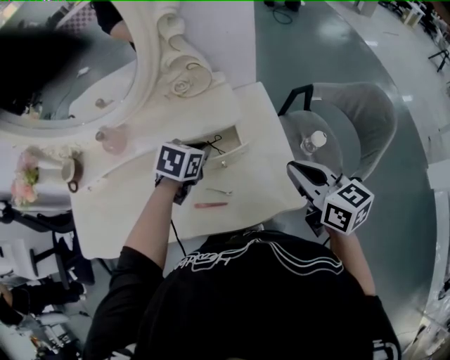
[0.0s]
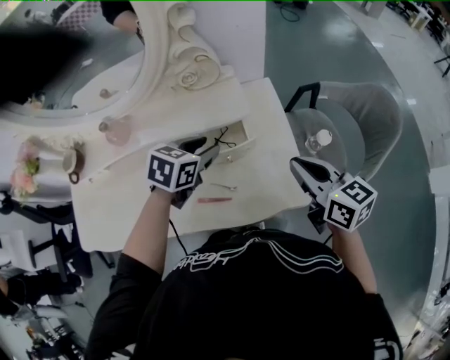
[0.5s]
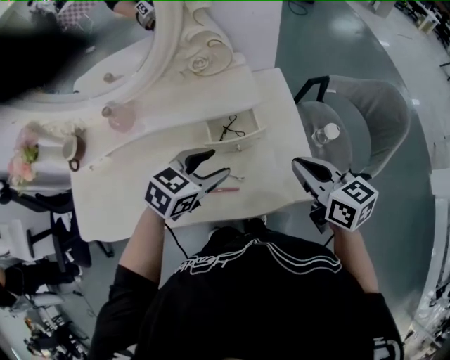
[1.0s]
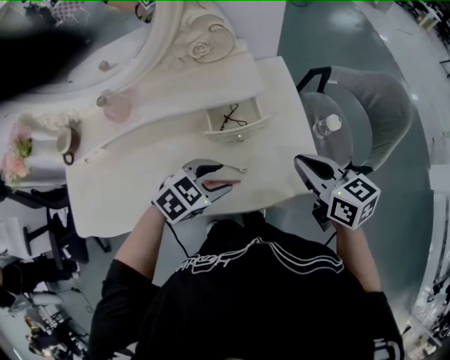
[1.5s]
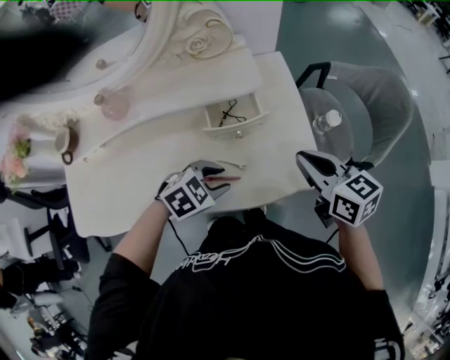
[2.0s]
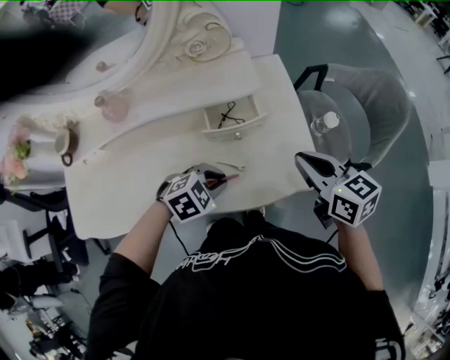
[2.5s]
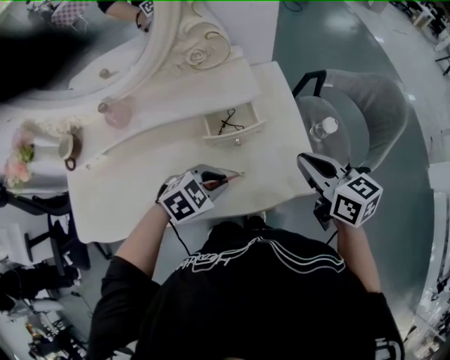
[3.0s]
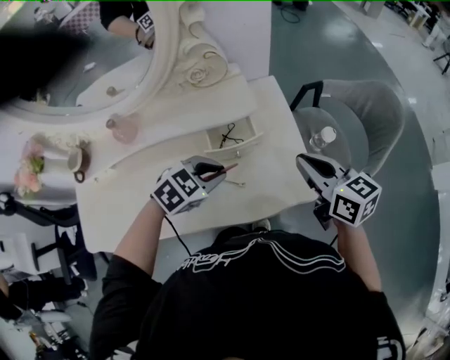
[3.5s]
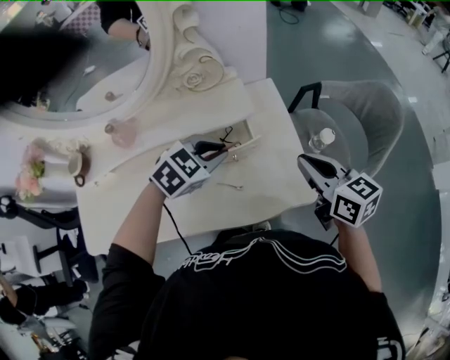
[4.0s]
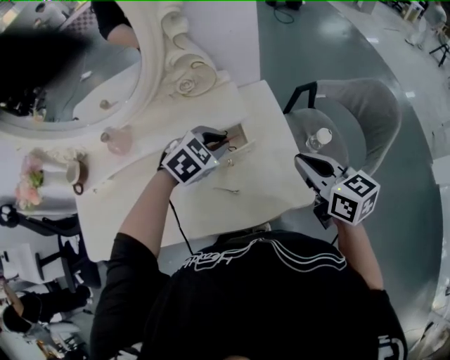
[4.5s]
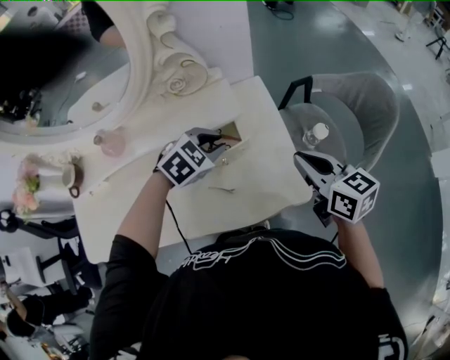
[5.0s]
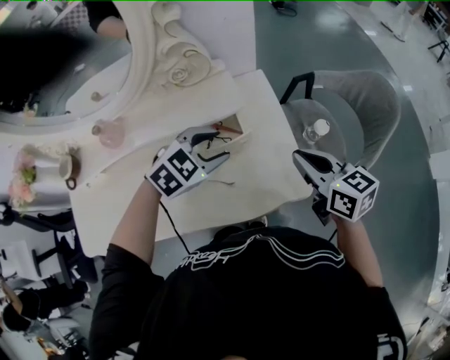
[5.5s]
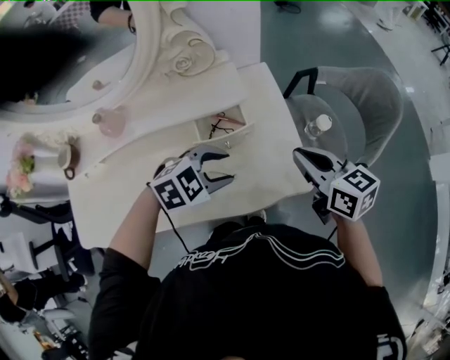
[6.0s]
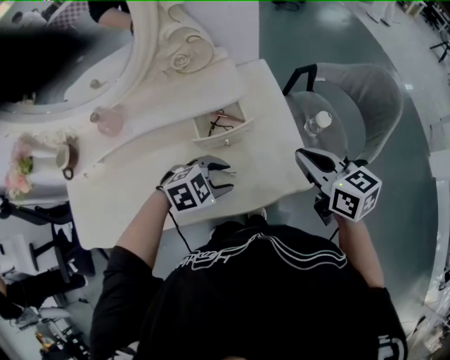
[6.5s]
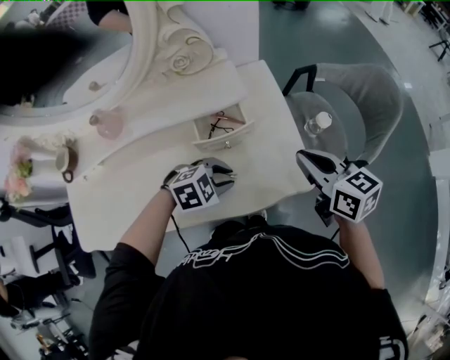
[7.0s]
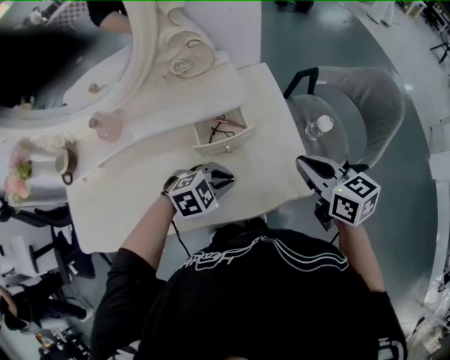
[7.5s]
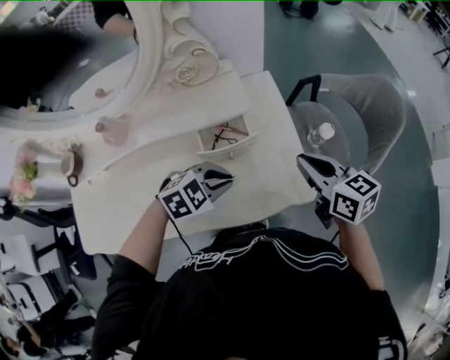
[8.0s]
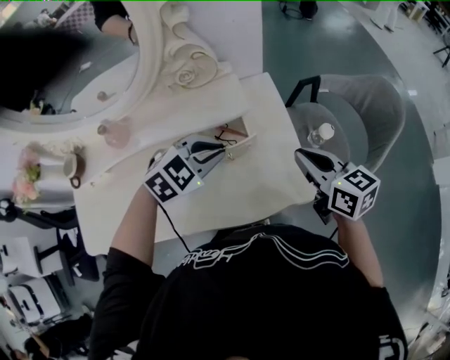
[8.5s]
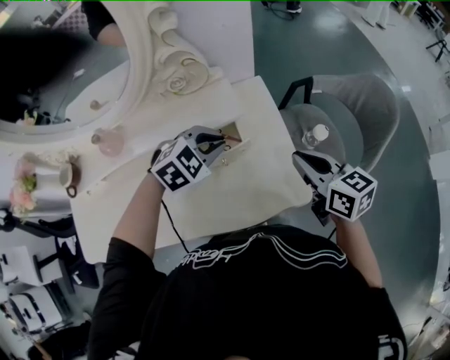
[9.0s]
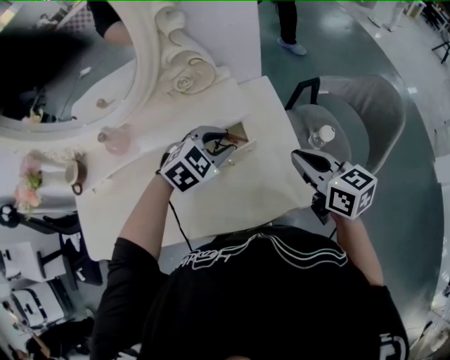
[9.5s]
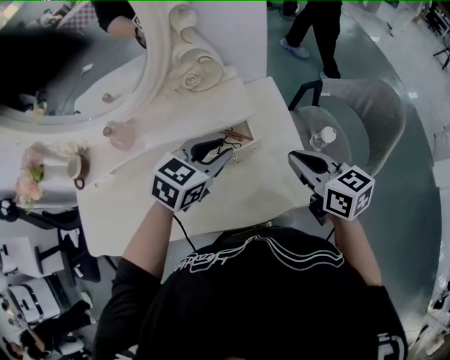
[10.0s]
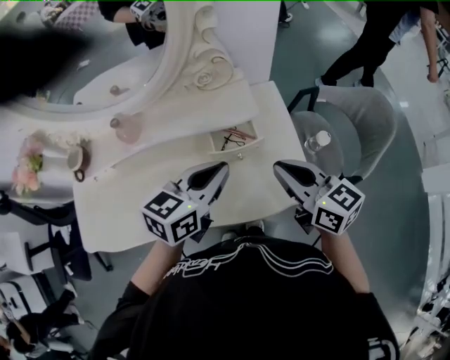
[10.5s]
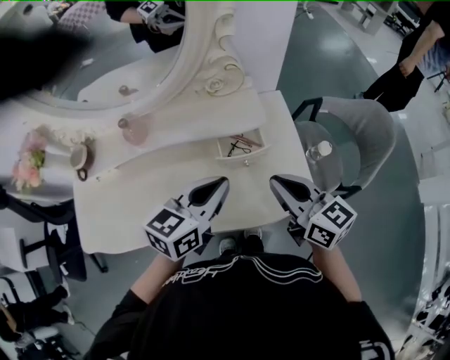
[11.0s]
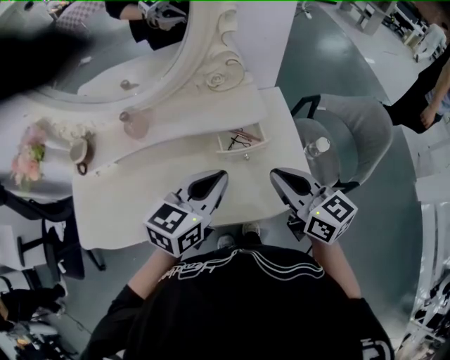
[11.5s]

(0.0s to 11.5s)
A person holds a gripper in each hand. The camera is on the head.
0.0s - 2.0s: The left gripper travels backward by roughly 15 cm, changes its angle by roughly 40 degrees, and opens. The right gripper ends up approximately 5 cm from where it was.
2.0s - 4.0s: The left gripper shifts some 15 cm forward and upward, and closes. Meanwhile the right gripper ends up some 5 cm from where it was.
4.0s - 6.0s: The left gripper travels backward by roughly 5 cm, and opens up.
6.0s - 7.5s: The left gripper heads downward, covering some 10 cm, and closes.
7.5s - 9.5s: The left gripper is displaced forward and upward by roughly 15 cm.
9.5s - 11.5s: The left gripper moves upward, backward and to the left, some 20 cm, and swivels some 50 degrees. Meanwhile the right gripper heads to the left, upward and backward, covering some 15 cm.

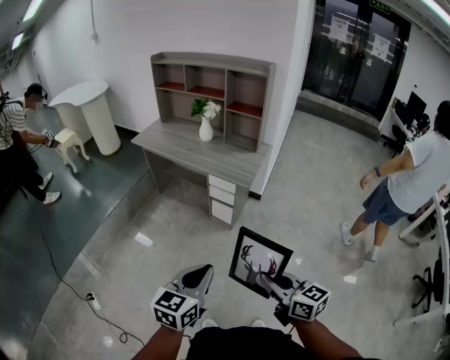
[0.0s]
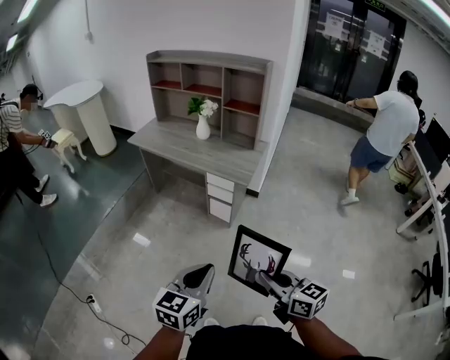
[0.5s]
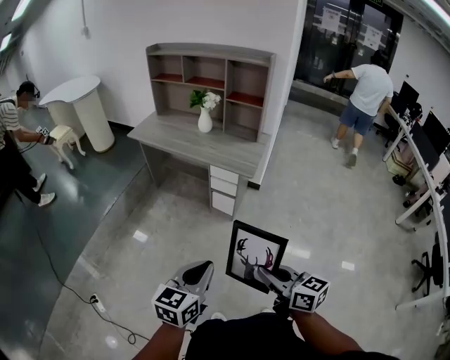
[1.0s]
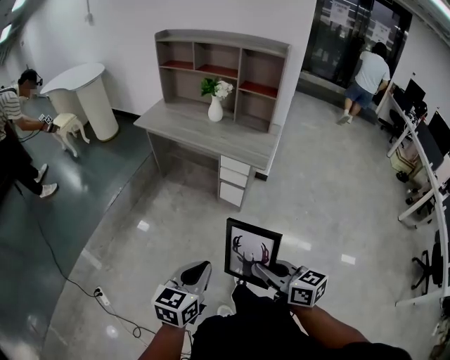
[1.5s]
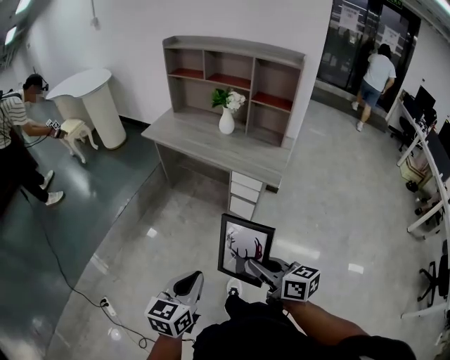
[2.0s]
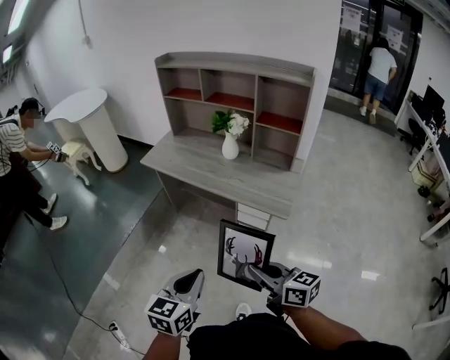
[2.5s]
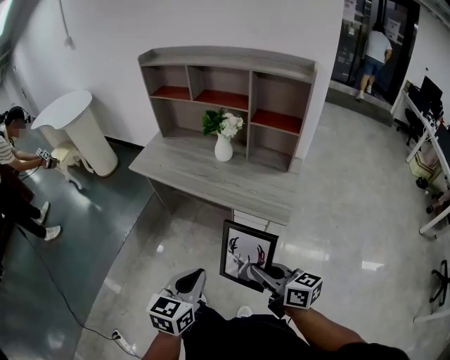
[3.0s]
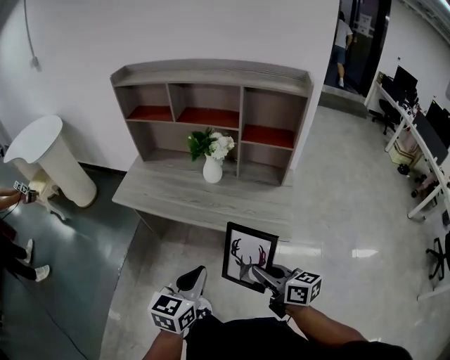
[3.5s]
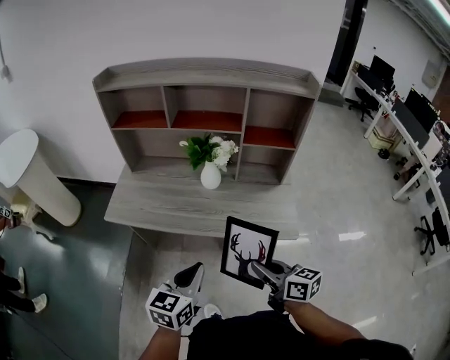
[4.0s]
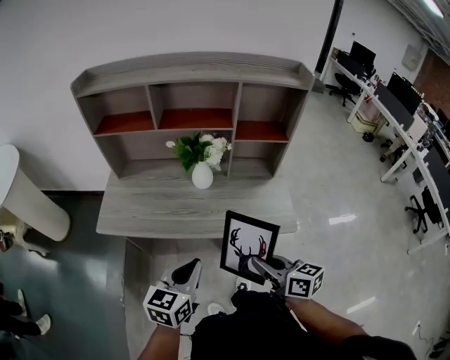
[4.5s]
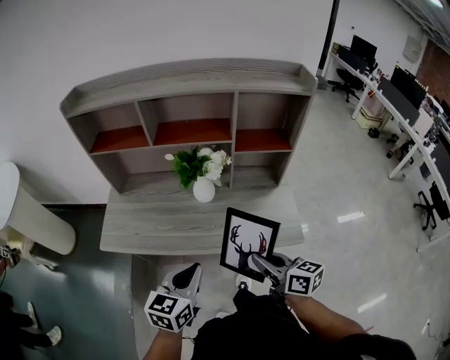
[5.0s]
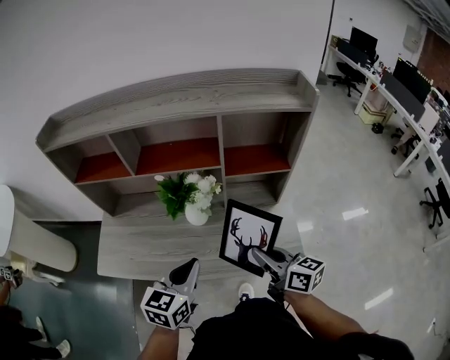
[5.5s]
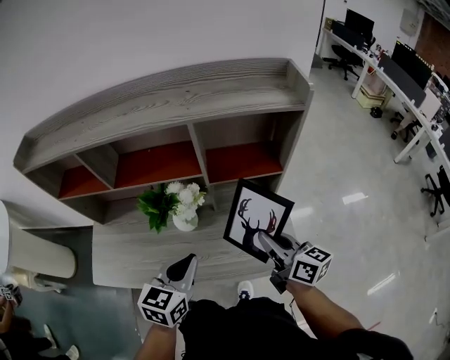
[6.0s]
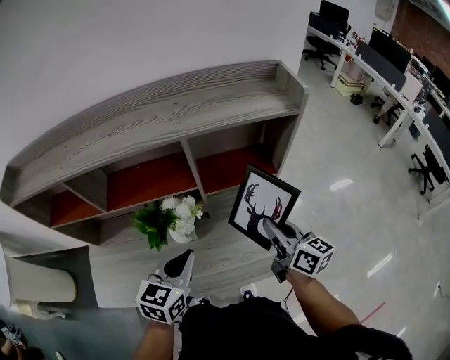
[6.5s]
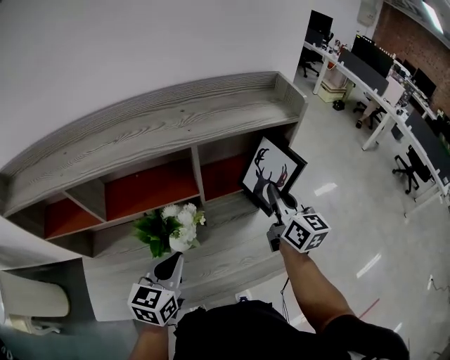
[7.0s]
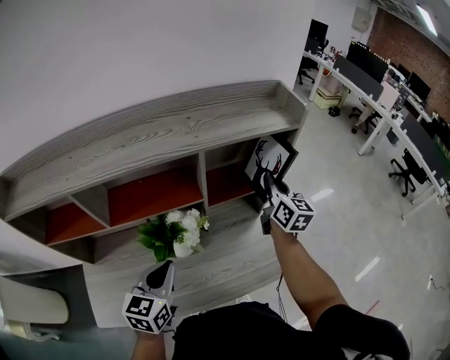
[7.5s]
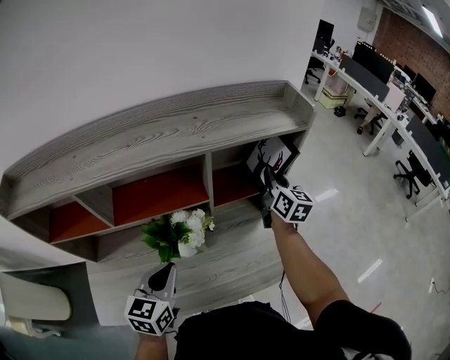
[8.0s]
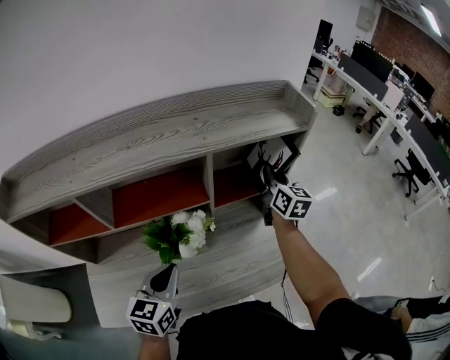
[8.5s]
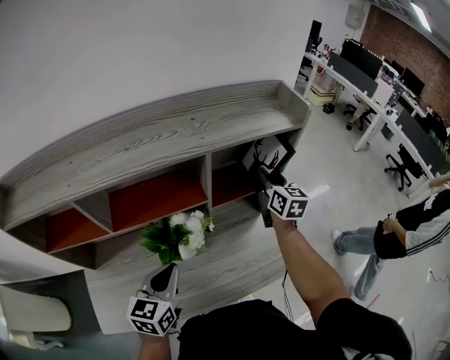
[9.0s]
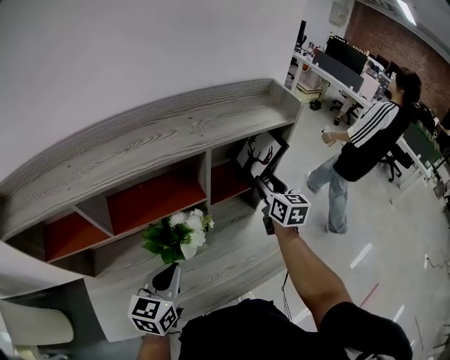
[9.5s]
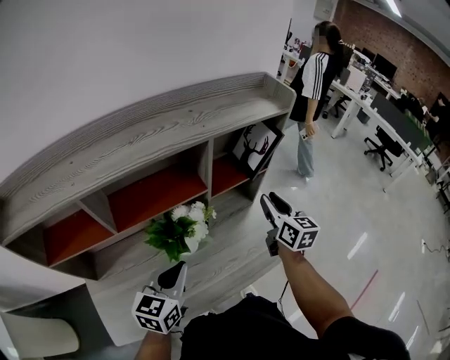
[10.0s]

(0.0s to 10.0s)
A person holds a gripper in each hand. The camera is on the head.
0.0s - 2.0s: Both grippers move to the left and forward, about 20 cm.
2.0s - 4.0s: The pair of grippers is taken forward, approximately 50 cm. The left gripper turns by some 20 degrees. Meanwhile the right gripper rotates approximately 20 degrees.
4.0s - 6.0s: The left gripper goes approximately 30 cm forward; the right gripper goes approximately 30 cm forward and to the right, and changes its angle by about 20 degrees.
6.0s - 8.0s: The right gripper travels forward by about 25 cm, and rotates roughly 40 degrees. Meanwhile the left gripper is displaced to the left by approximately 10 cm.
8.0s - 10.0s: The right gripper heads backward, covering some 15 cm, and opens.

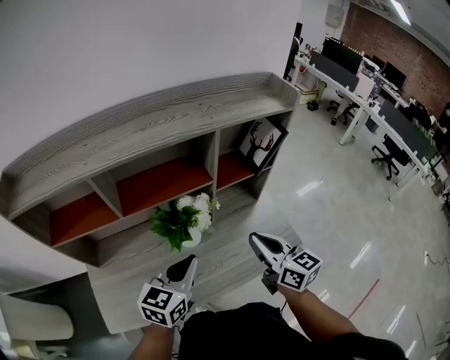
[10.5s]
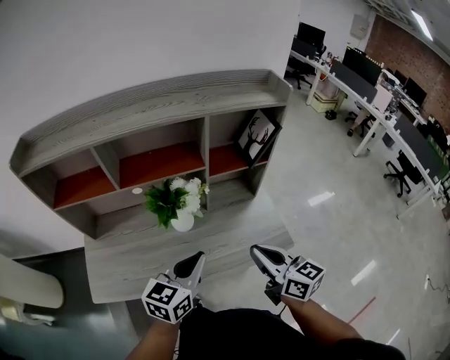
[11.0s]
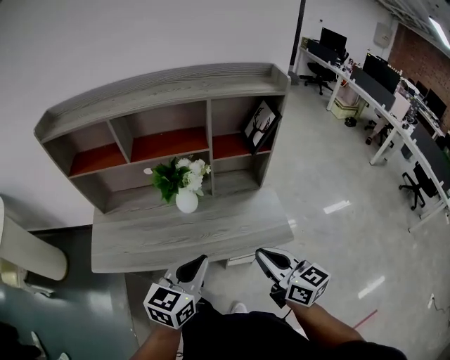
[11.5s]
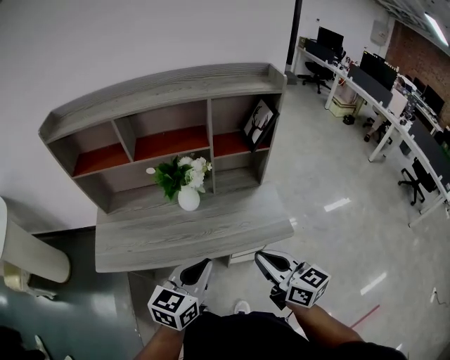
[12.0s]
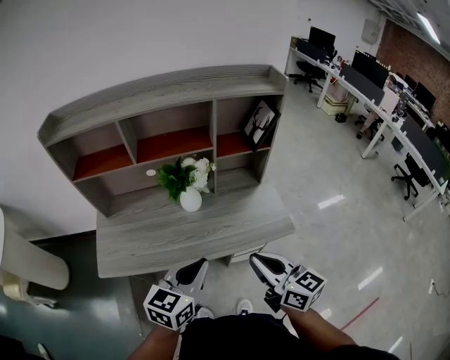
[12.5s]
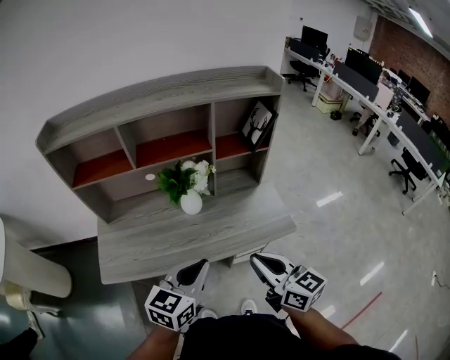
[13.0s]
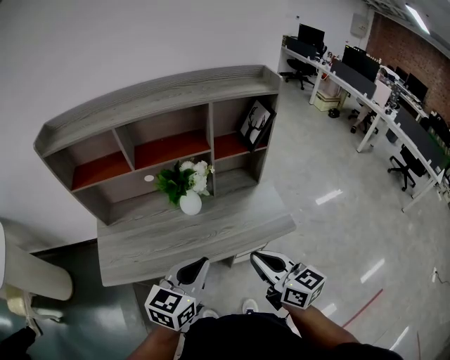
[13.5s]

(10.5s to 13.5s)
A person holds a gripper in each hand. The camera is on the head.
10.5s - 12.0s: The left gripper is displaced backward and to the right by about 20 cm; the right gripper is displaced backward by some 20 cm.
12.0s - 13.5s: Both grippers move to the left, roughly 5 cm.

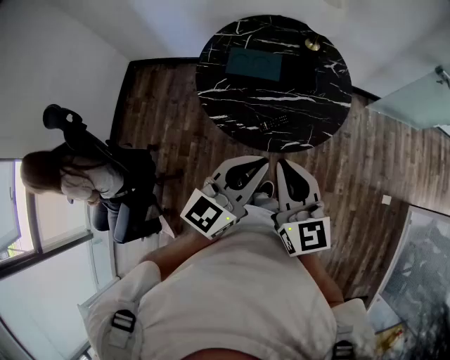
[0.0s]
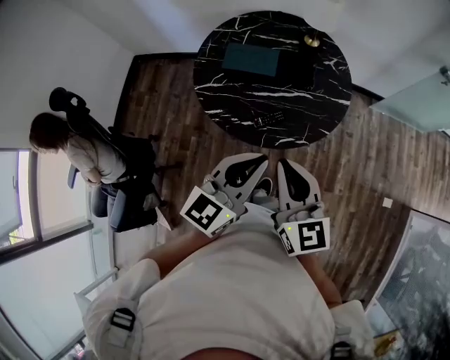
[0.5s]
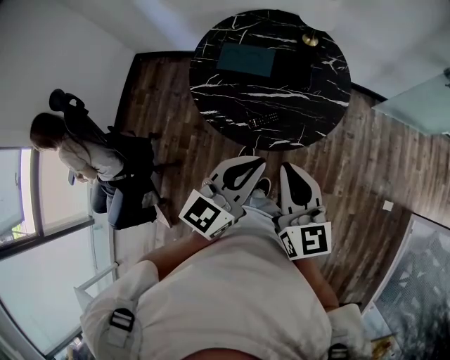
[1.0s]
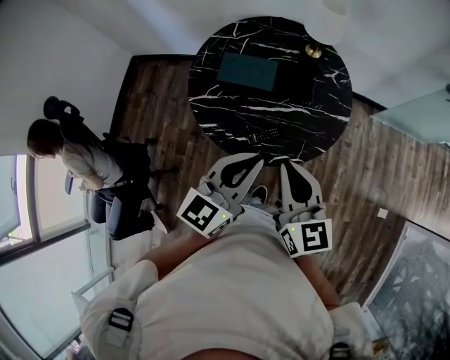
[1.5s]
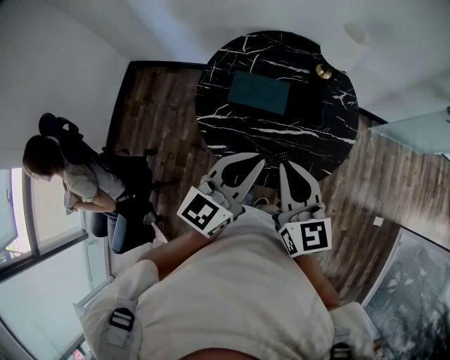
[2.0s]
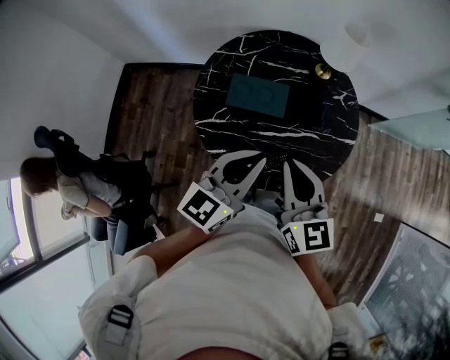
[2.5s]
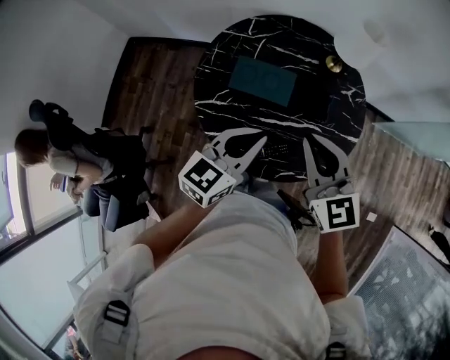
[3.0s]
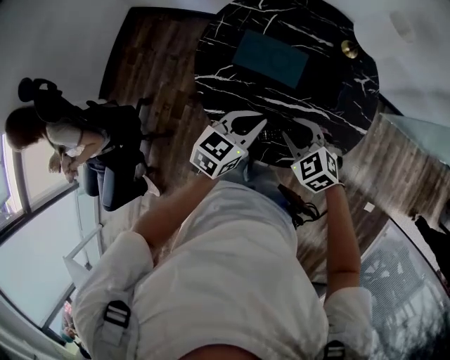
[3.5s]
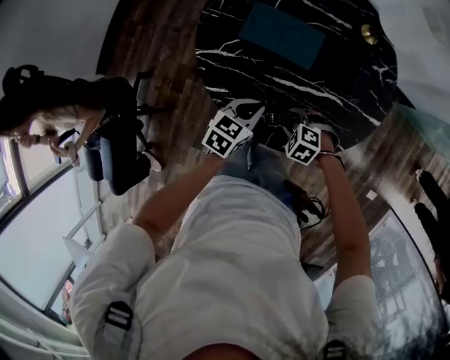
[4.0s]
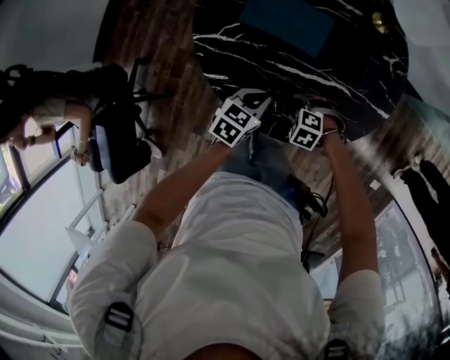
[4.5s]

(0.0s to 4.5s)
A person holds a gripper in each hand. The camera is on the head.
0.0s - 2.0s: Both grippers move forward, approximately 15 cm.
2.0s - 4.5s: The grippers both shift downward by some 40 cm. The right gripper tilts its fingers about 70 degrees downward, and opens up, while the left gripper tilts its fingers approximately 40 degrees downward.
